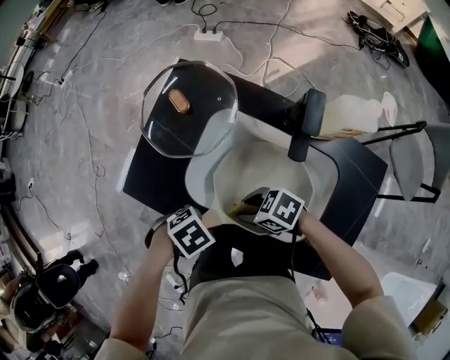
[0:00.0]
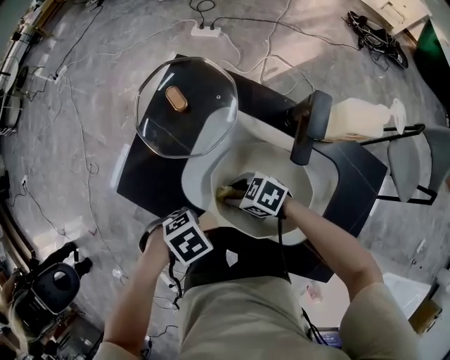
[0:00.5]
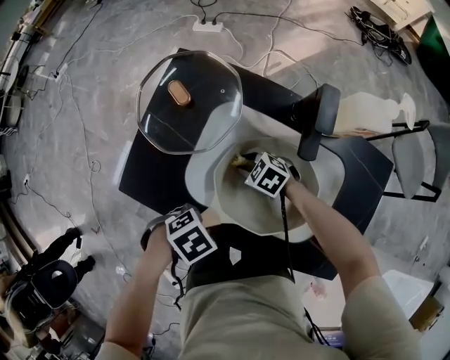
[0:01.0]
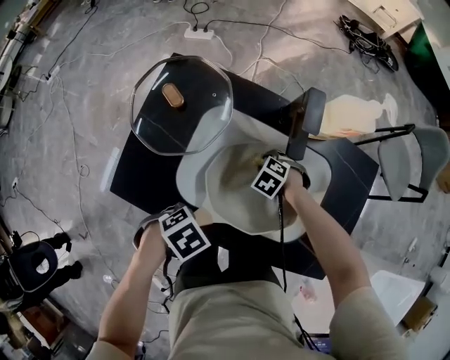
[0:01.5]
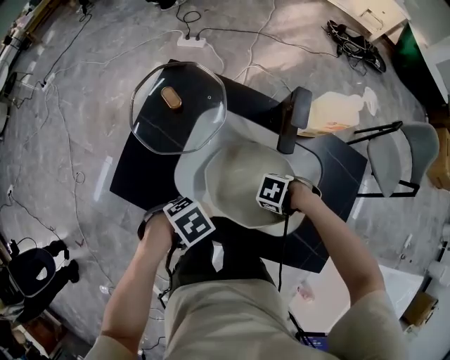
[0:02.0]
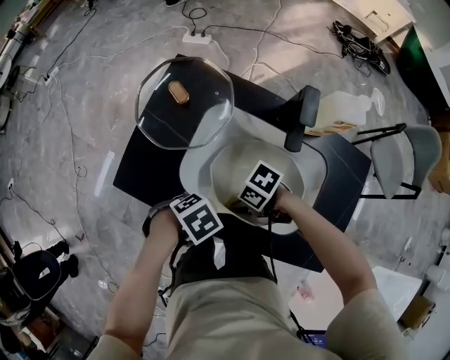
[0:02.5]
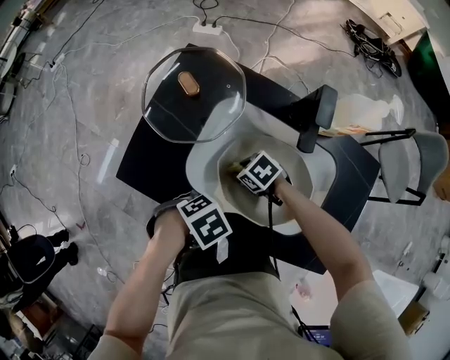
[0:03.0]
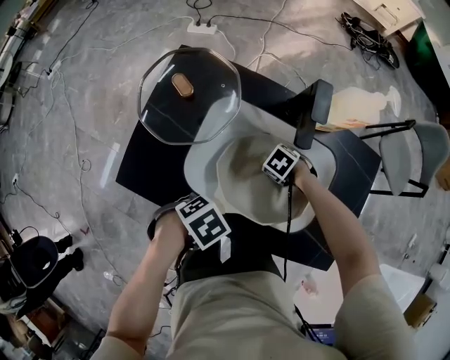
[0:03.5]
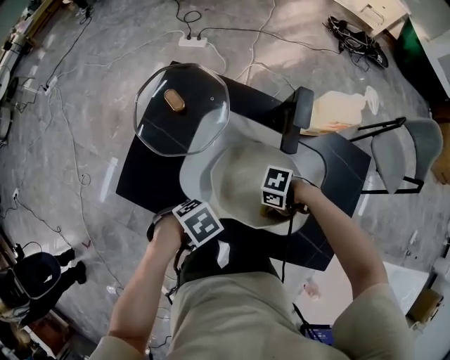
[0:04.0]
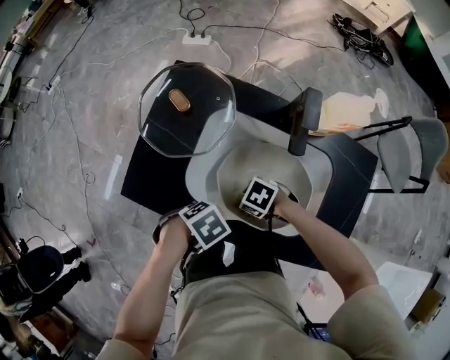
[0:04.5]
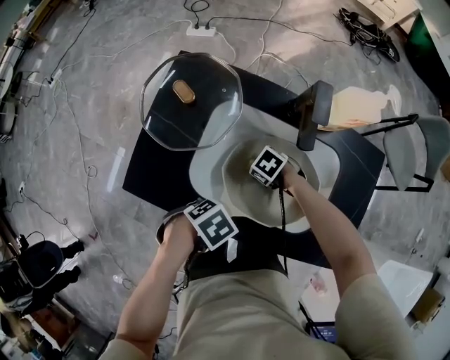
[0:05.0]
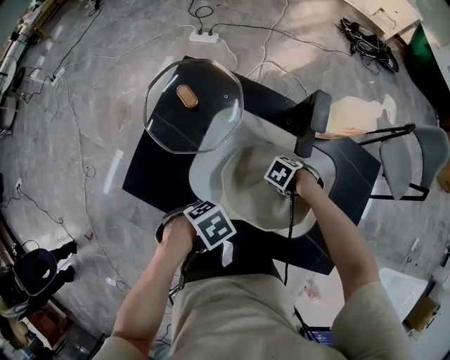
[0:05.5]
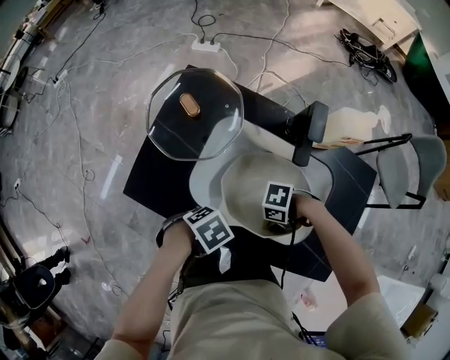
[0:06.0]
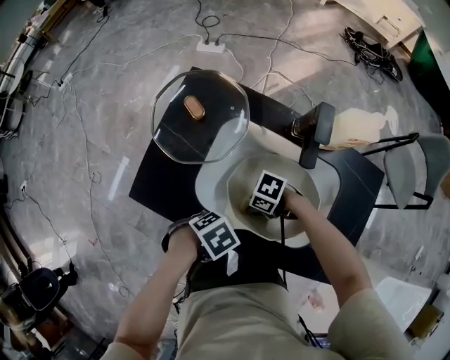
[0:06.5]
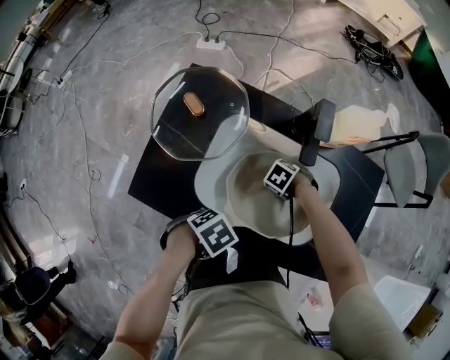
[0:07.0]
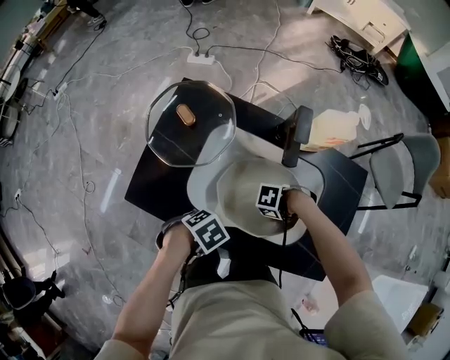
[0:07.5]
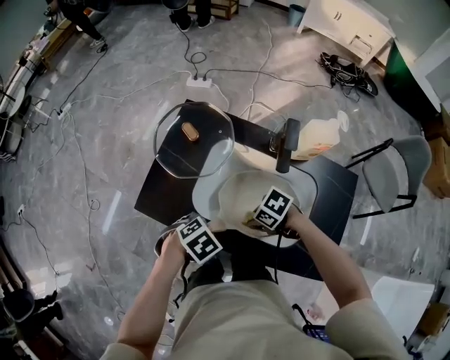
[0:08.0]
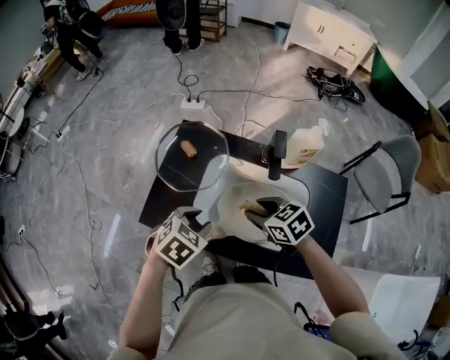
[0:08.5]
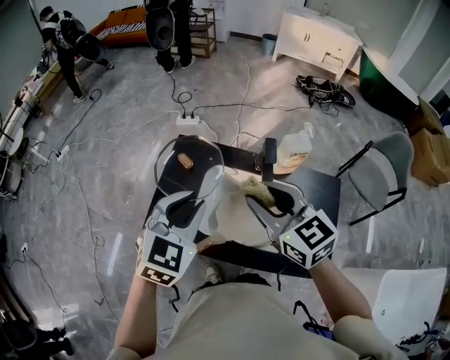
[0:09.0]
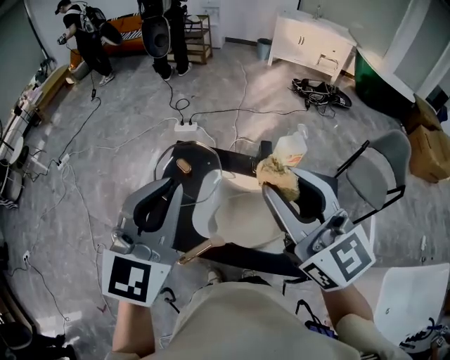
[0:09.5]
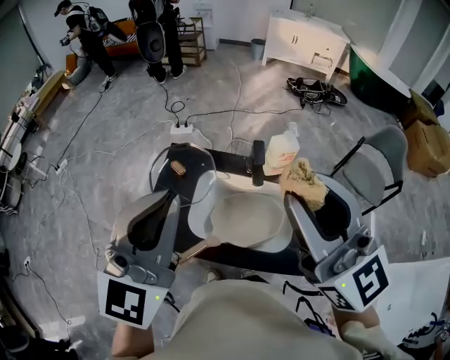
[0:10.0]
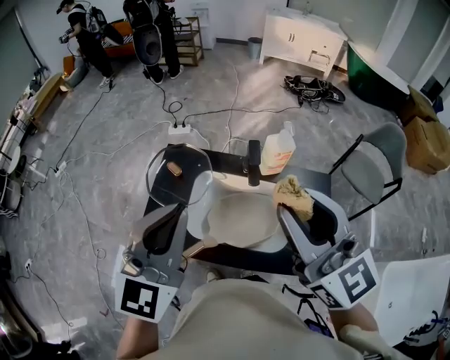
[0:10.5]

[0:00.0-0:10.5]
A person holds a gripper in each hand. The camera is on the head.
0:00.0 to 0:02.0: The right gripper changes place by approximately 15 cm, and rotates some 40 degrees.
0:02.0 to 0:04.0: The right gripper goes up and down, some 10 cm each way, reversing 2 times.
0:04.0 to 0:06.5: The right gripper moves roughly 10 cm downward and comes back.
0:06.5 to 0:08.5: The two grippers go roughly 20 cm upward. The left gripper swivels roughly 40 degrees, while the right gripper swivels about 50 degrees.
0:08.5 to 0:10.5: Both grippers move upward, roughly 35 cm. The right gripper angles its fingers upward, by roughly 50 degrees, while the left gripper angles its fingers upward, by approximately 50 degrees, and closes.

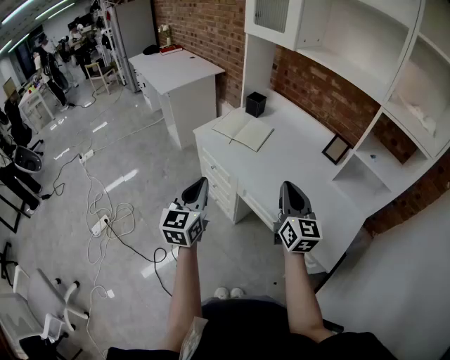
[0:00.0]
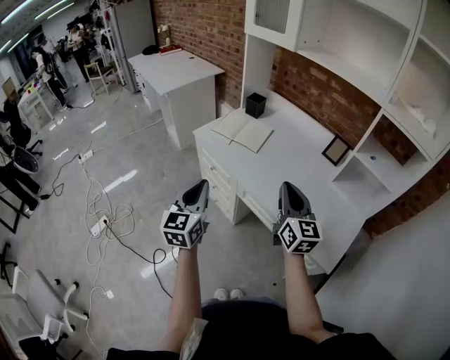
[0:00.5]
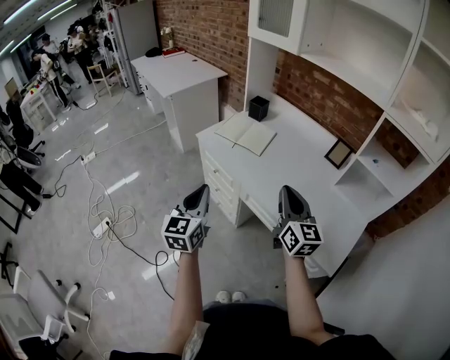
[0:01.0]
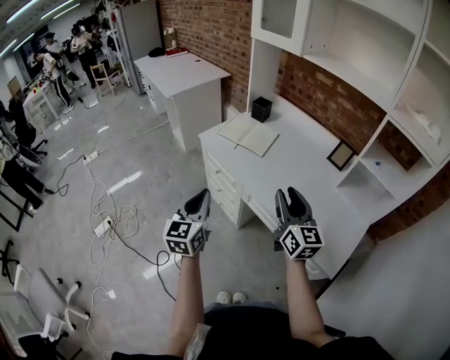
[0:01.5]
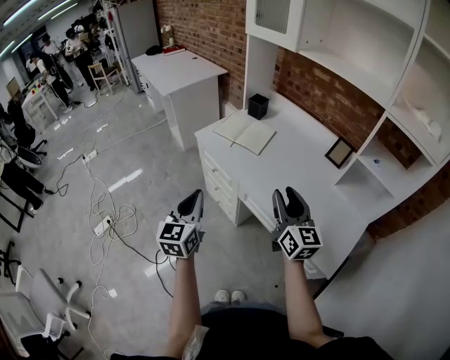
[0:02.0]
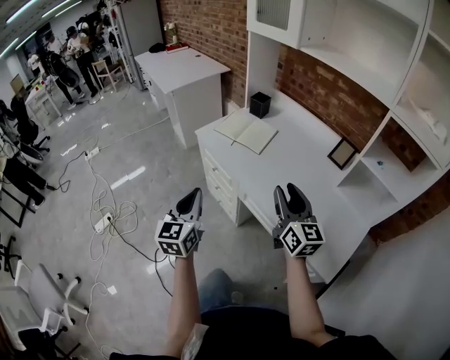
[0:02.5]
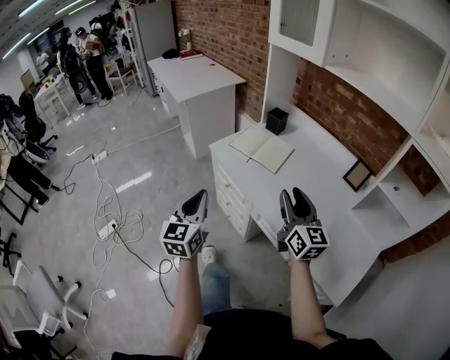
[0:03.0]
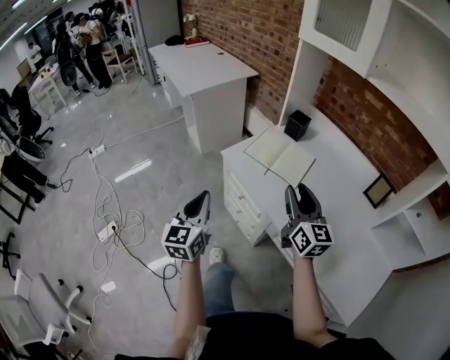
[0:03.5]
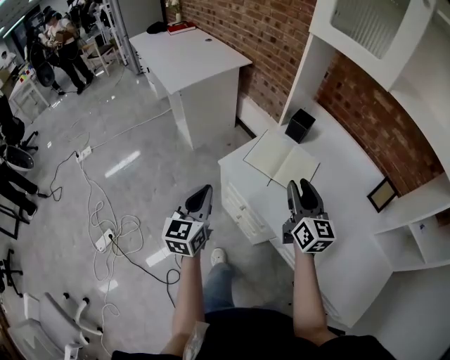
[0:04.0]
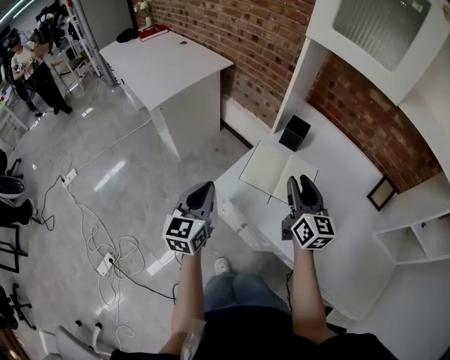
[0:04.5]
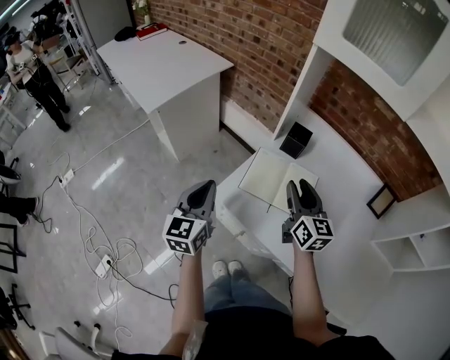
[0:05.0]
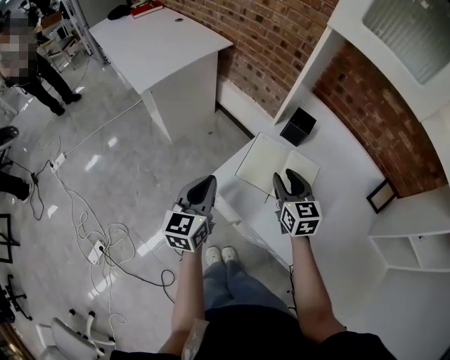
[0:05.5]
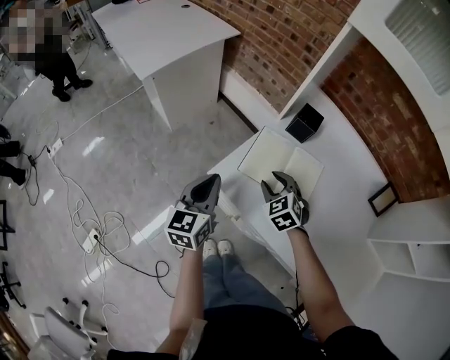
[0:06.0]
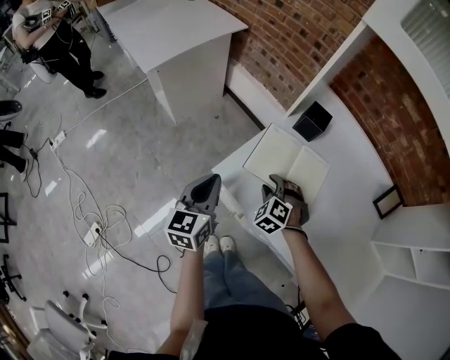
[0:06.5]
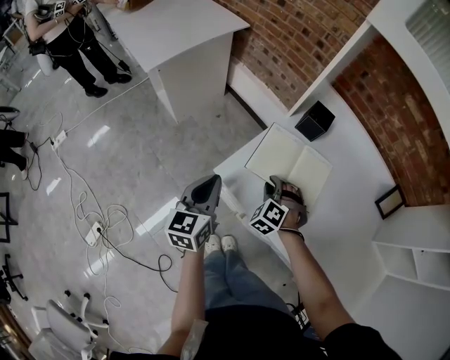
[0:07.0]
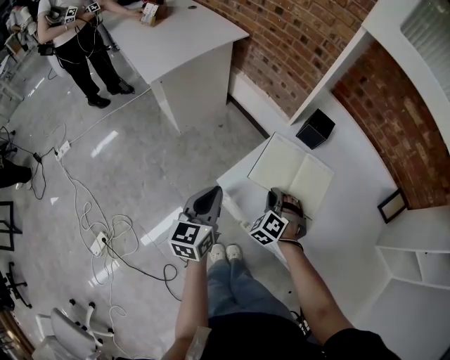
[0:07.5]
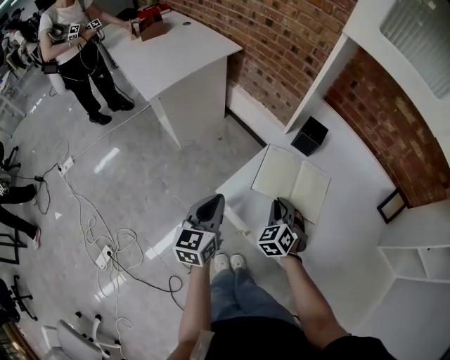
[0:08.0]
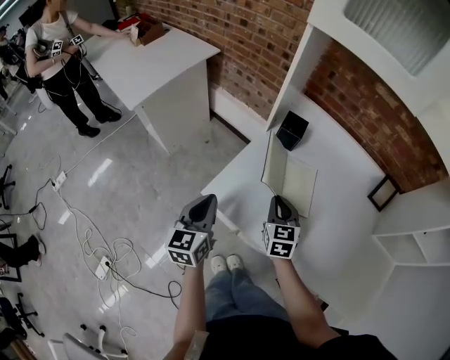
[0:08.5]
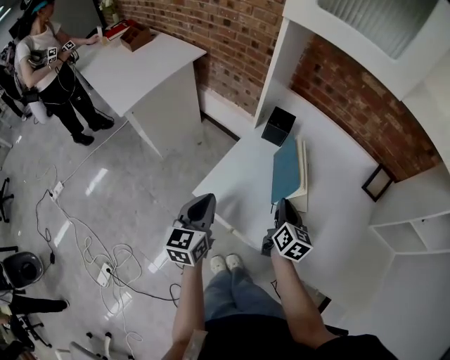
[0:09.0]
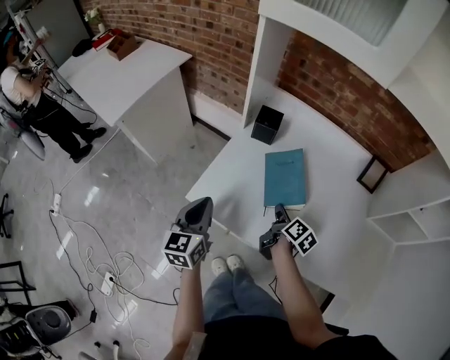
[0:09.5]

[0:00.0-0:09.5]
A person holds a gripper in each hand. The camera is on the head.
0:00.0 to 0:02.0: The right gripper opens up.
0:02.0 to 0:04.0: The right gripper shifts some 35 cm forward. Meanwhile the left gripper travels forward and to the left by about 35 cm.
0:04.0 to 0:05.5: The left gripper travels forward by about 15 cm; the right gripper travels forward and downward by about 15 cm, and rotates about 20 degrees.
0:05.5 to 0:07.5: The left gripper moves approximately 5 cm. Meanwhile the right gripper moves downward, some 15 cm, rotates around the line of its fingers by some 60 degrees, counterclockwise from behind, and closes.
0:07.5 to 0:09.5: The left gripper travels to the right by roughly 10 cm, while the right gripper moves to the right, about 15 cm, and rolls clockwise, seen from behind, by approximately 130 degrees.

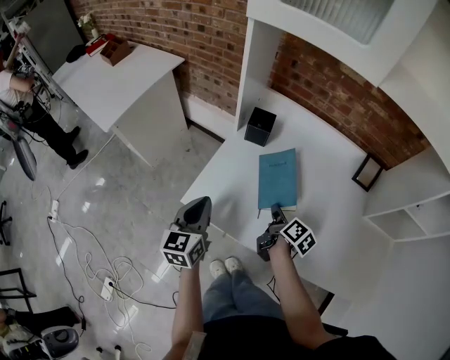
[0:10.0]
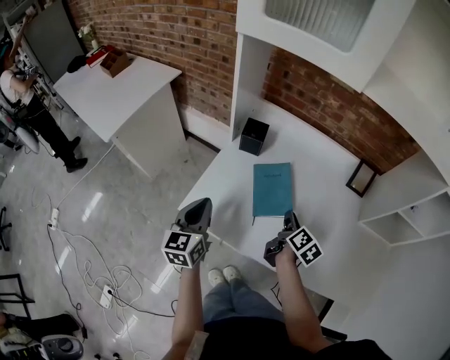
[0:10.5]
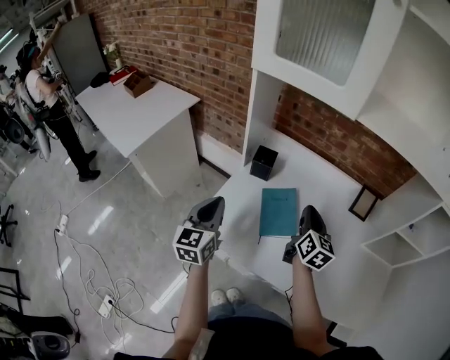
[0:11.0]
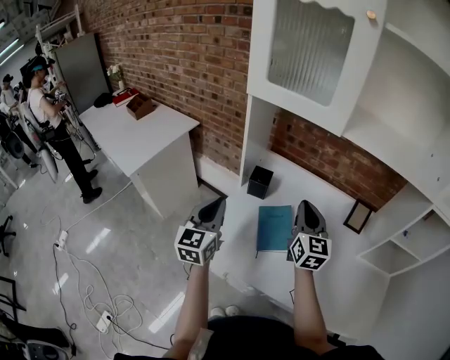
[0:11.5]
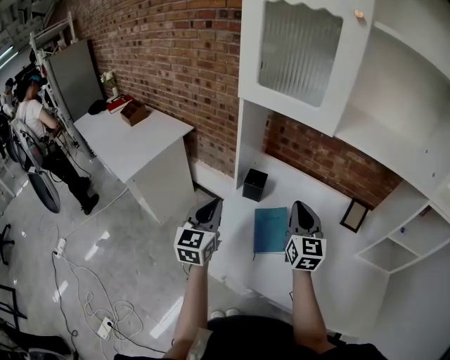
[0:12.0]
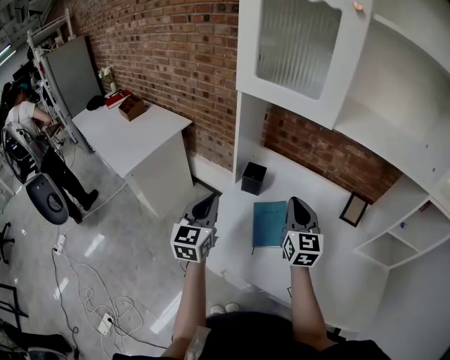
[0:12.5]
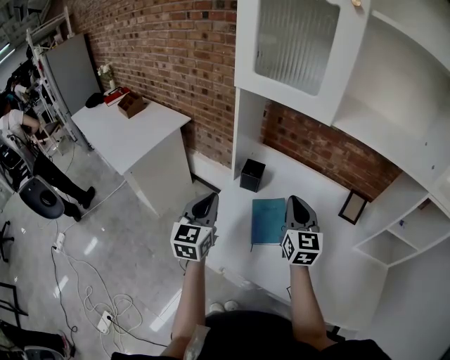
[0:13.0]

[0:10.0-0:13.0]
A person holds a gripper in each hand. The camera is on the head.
0:10.0 to 0:11.5: The left gripper is displaced upward and forward by about 15 cm. Meanwhile the right gripper shifts about 25 cm upward, and rolls counterclockwise, seen from behind, by roughly 60 degrees.
0:11.5 to 0:13.0: There are only small adjustments of the grippers.

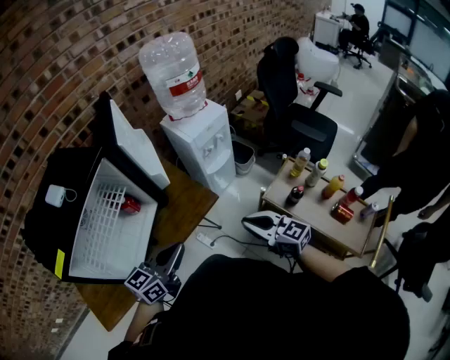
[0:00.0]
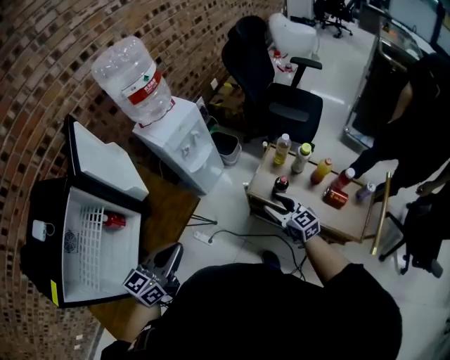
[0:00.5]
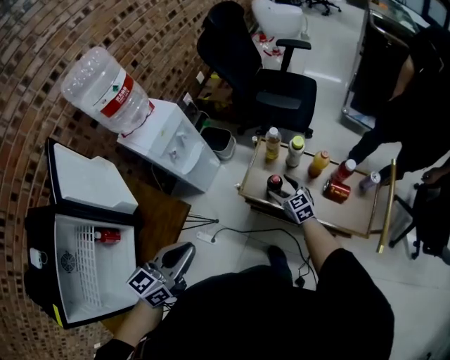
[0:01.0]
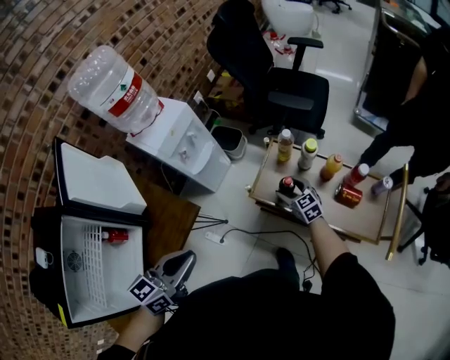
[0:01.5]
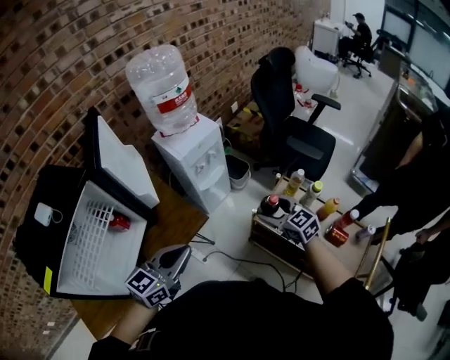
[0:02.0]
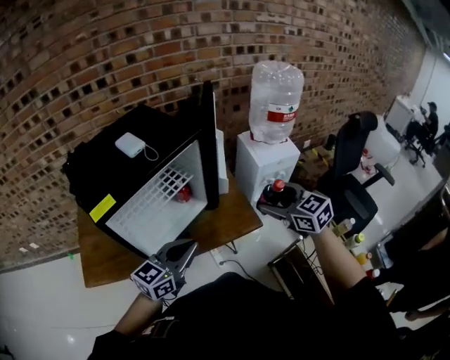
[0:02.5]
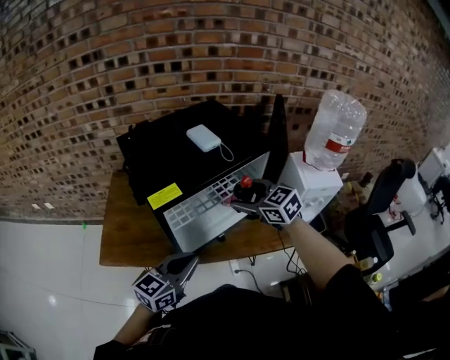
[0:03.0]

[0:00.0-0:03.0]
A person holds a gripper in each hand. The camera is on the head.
0:00.0 to 0:01.5: The right gripper changes place by approximately 40 cm, turns by roughly 40 degrees, and opens; the left gripper moves roughly 20 cm.
0:01.5 to 0:03.0: The two grippers travel together, approximately 60 cm. The left gripper swivels roughly 50 degrees; the right gripper changes its angle by approximately 70 degrees.
